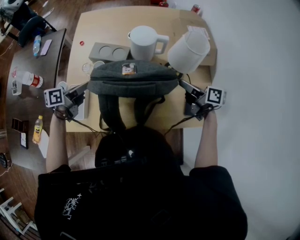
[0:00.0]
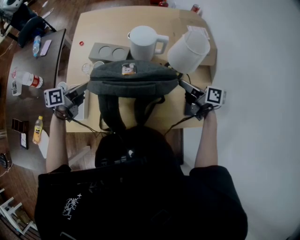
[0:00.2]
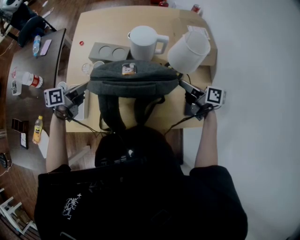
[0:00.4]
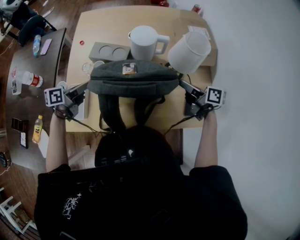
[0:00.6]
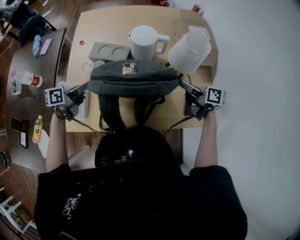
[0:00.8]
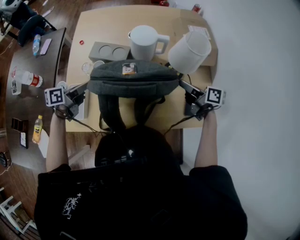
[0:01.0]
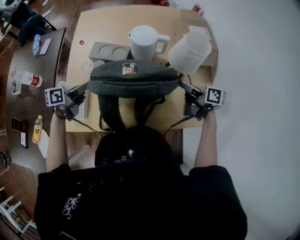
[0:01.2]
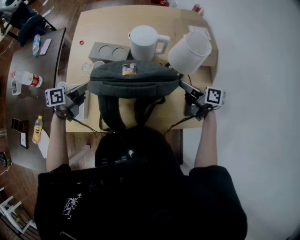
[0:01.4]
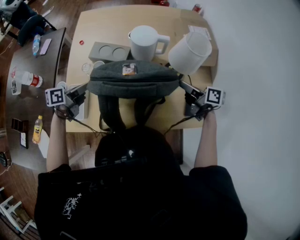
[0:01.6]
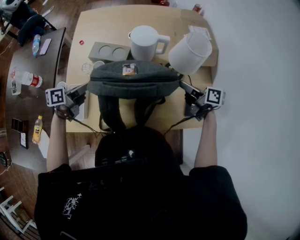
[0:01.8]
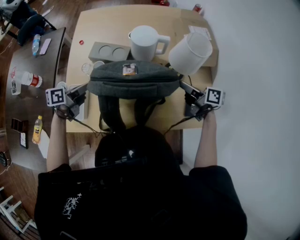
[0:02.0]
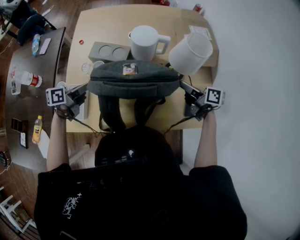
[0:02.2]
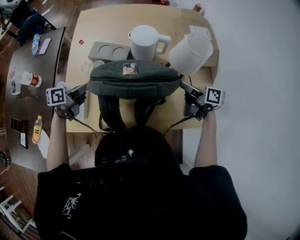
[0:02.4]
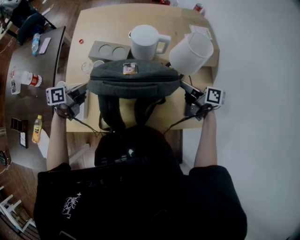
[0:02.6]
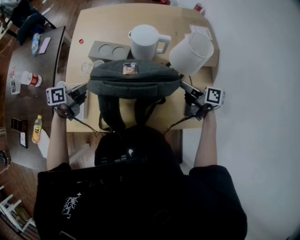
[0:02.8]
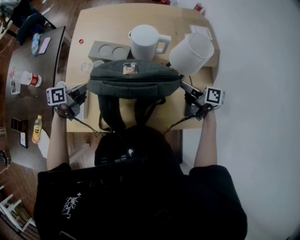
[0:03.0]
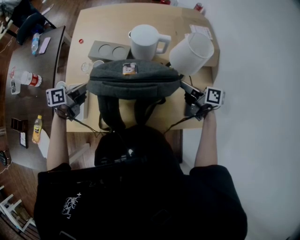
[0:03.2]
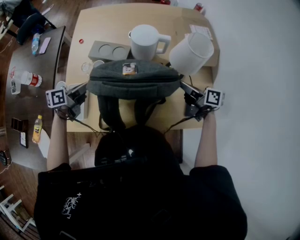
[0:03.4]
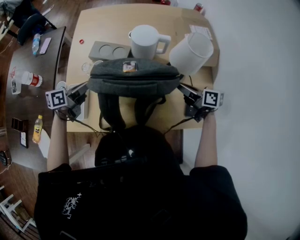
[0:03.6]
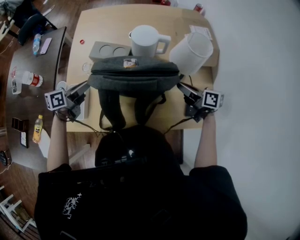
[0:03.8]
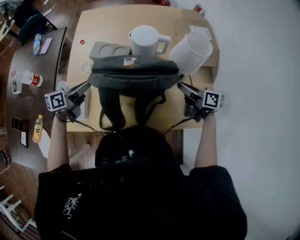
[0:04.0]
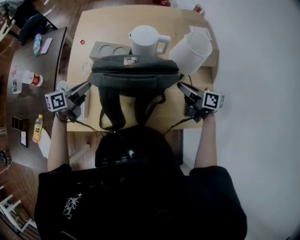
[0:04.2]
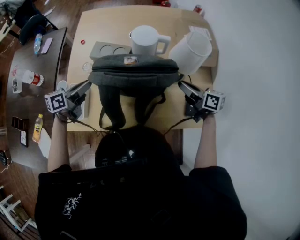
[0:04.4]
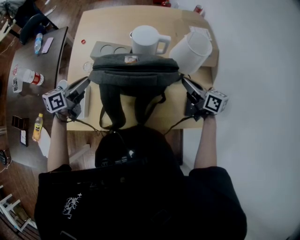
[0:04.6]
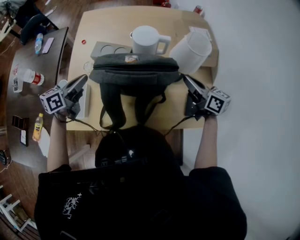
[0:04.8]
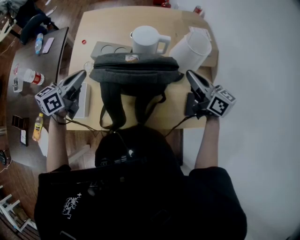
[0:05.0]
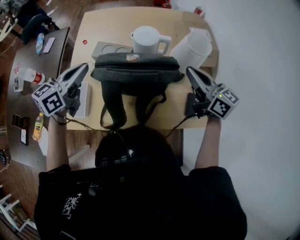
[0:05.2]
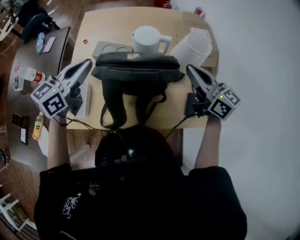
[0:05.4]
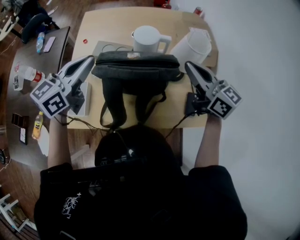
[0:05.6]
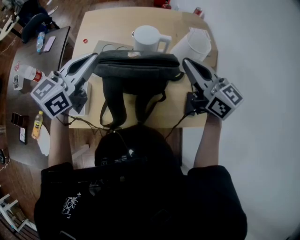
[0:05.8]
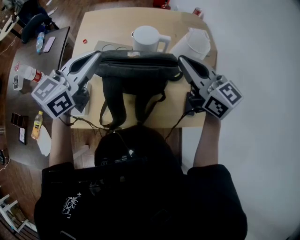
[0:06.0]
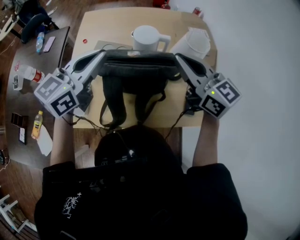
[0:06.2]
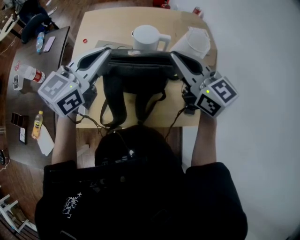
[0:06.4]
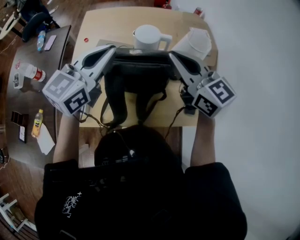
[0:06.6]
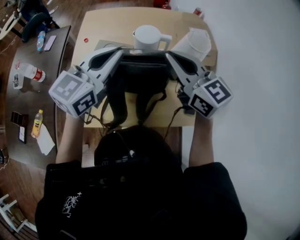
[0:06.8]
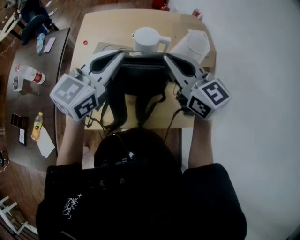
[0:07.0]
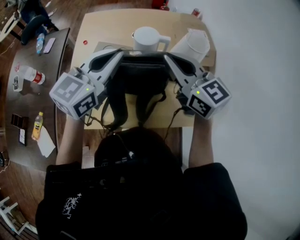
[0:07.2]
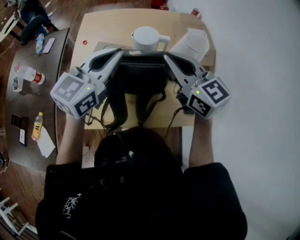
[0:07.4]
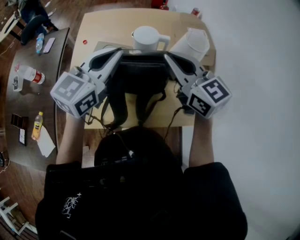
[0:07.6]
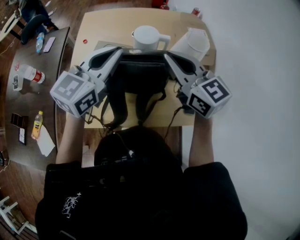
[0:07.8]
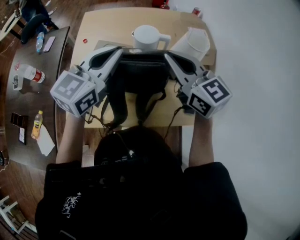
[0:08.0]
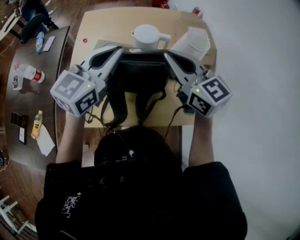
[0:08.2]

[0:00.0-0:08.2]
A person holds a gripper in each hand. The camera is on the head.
0:00.0 to 0:01.6: The grippers stay close to where they were, moving slightly.
0:01.6 to 0:03.2: Both grippers stay about where they are.
0:03.2 to 0:05.0: The two grippers go roughly 15 cm upward. The left gripper changes its angle by some 30 degrees, while the right gripper swivels roughly 30 degrees.
0:05.0 to 0:06.6: The right gripper is displaced upward and to the left by some 15 cm, and rotates roughly 30 degrees, while the left gripper heads upward and to the right, covering about 20 cm, and swivels approximately 30 degrees.
0:06.6 to 0:08.2: There are only small adjustments of the grippers.

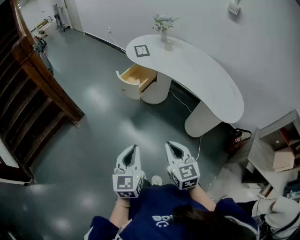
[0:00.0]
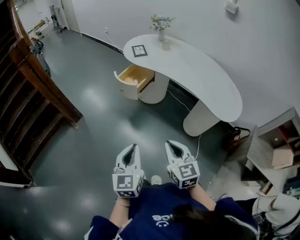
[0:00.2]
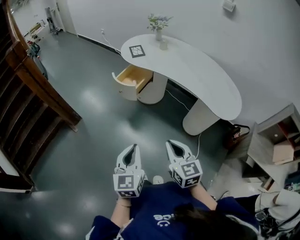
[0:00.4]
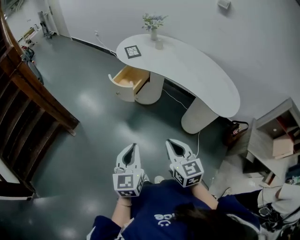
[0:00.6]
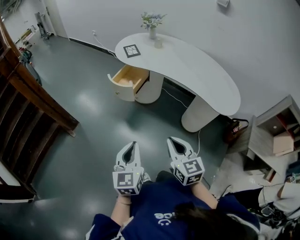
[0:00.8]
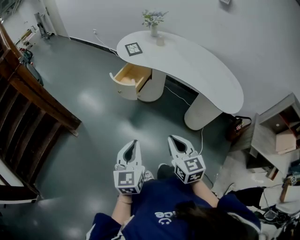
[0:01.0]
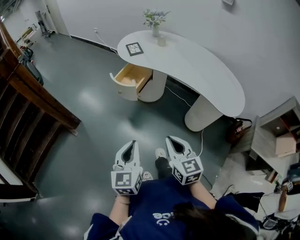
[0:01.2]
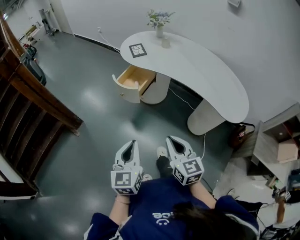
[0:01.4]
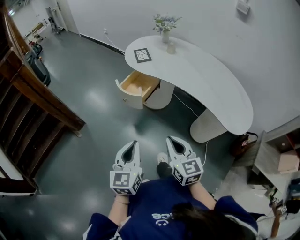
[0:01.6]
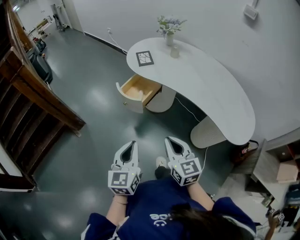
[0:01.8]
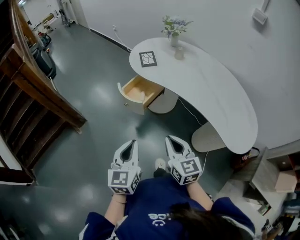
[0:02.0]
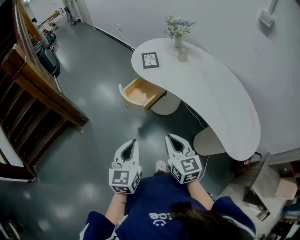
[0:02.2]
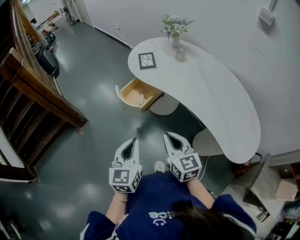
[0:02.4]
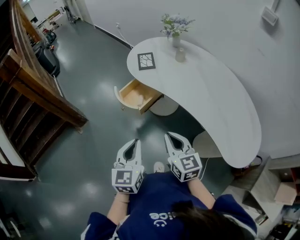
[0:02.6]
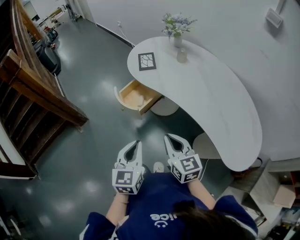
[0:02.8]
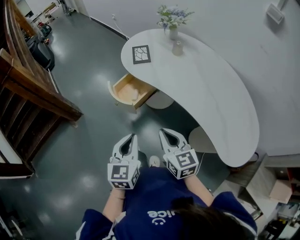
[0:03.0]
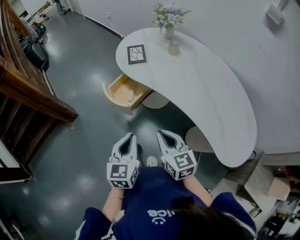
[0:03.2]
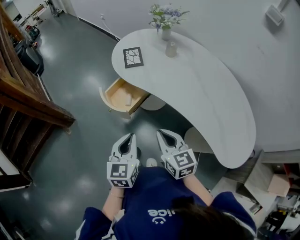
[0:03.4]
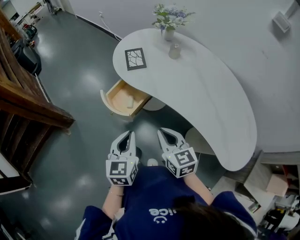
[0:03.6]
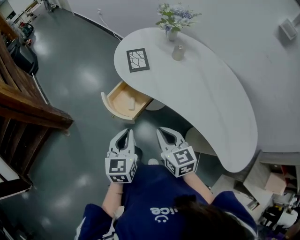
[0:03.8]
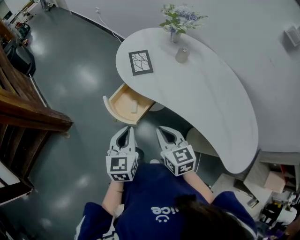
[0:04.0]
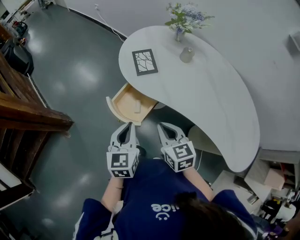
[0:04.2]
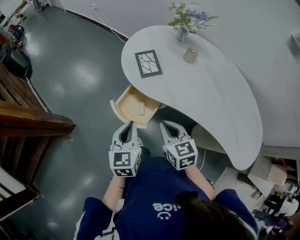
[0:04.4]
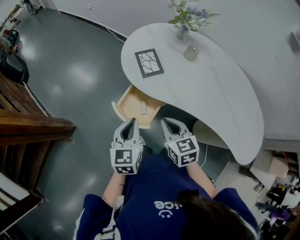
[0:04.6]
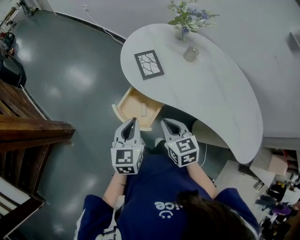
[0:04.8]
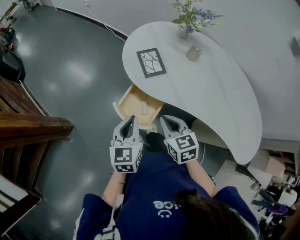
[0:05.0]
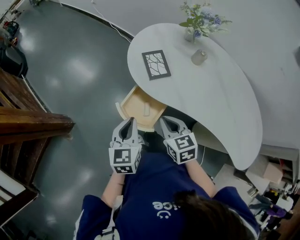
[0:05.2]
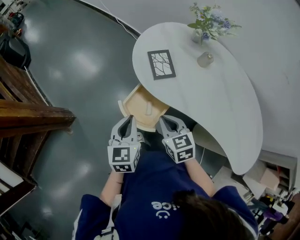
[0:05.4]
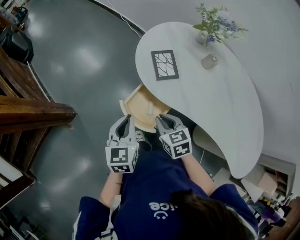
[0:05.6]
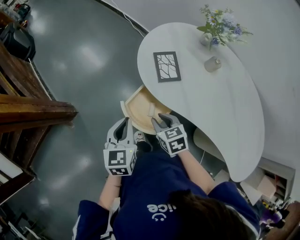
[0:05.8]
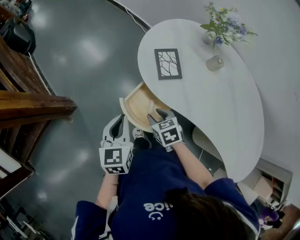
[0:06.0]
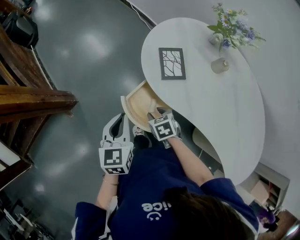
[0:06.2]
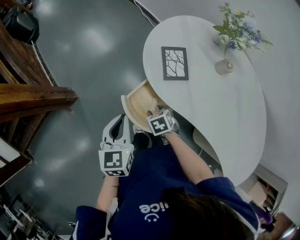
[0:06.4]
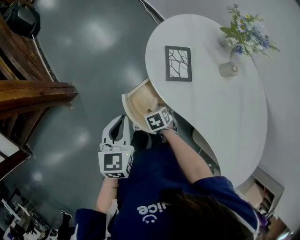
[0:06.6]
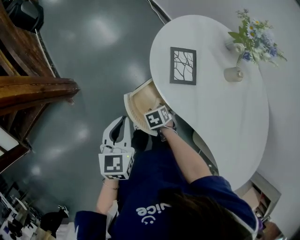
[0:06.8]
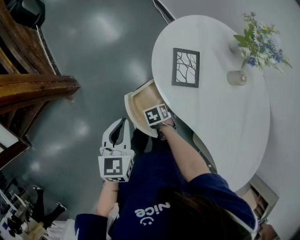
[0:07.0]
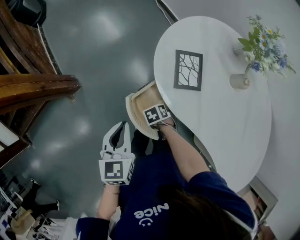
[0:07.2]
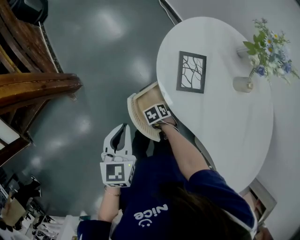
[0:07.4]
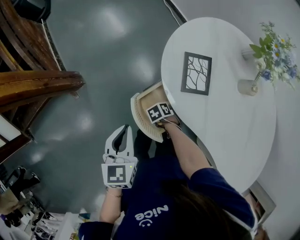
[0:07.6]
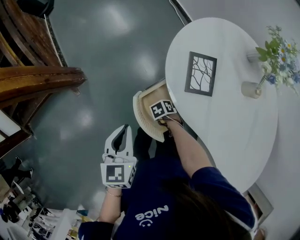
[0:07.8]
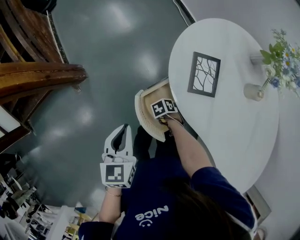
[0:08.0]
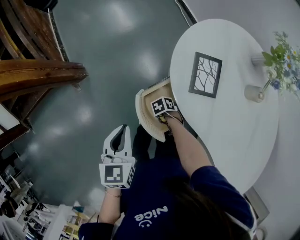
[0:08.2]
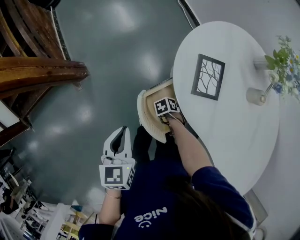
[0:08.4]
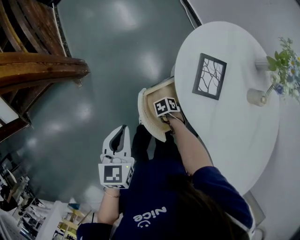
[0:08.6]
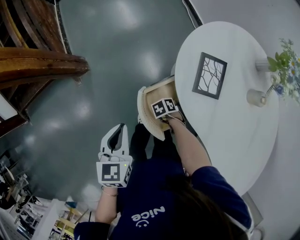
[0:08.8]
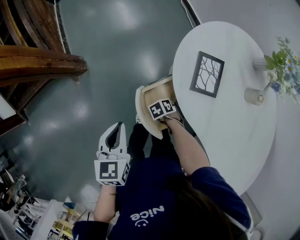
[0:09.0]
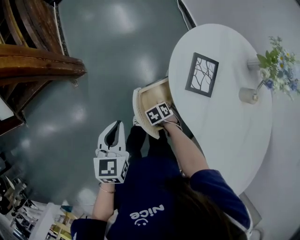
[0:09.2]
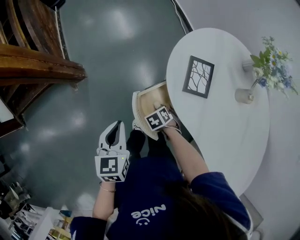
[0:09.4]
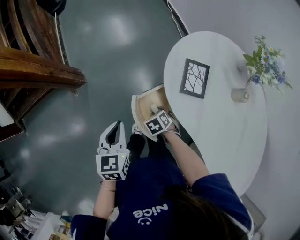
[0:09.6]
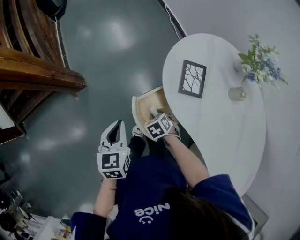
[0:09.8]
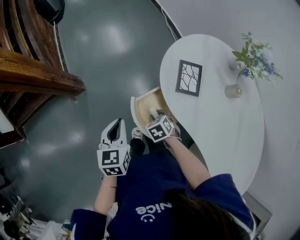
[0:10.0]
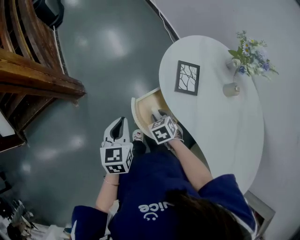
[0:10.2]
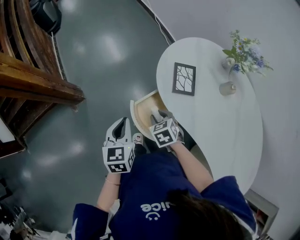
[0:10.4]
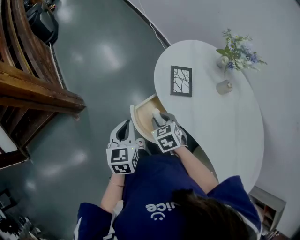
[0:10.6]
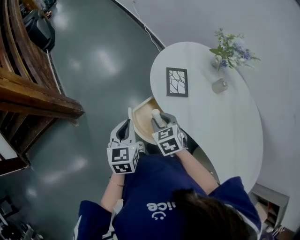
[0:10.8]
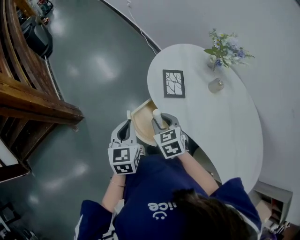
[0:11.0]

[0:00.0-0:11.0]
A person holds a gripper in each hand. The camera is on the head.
0:00.0 to 0:01.6: Both grippers travel together forward, some 15 cm.
0:01.6 to 0:03.2: The two grippers go about 20 cm forward and to the right.
0:03.2 to 0:04.8: Both grippers travel together forward and to the left, some 25 cm.
0:04.8 to 0:06.2: The left gripper goes about 10 cm to the left and forward, while the right gripper goes some 15 cm downward and forward, turns by some 30 degrees, and opens its fingers.
0:06.2 to 0:07.8: The right gripper moves downward, approximately 20 cm, and swivels some 40 degrees.
0:07.8 to 0:09.4: The right gripper shifts roughly 5 cm upward, swivels some 20 degrees, and closes up.
0:09.4 to 0:11.0: The right gripper shifts approximately 25 cm upward, and tilts its fingers about 40 degrees upward, while the left gripper shifts by about 10 cm.

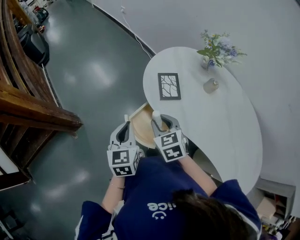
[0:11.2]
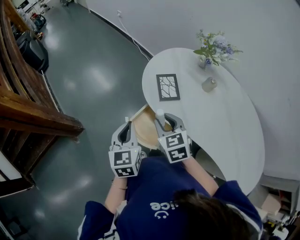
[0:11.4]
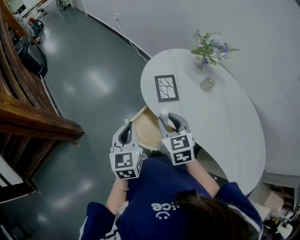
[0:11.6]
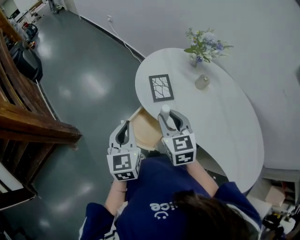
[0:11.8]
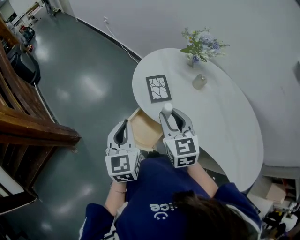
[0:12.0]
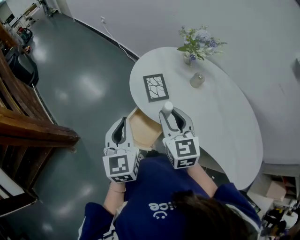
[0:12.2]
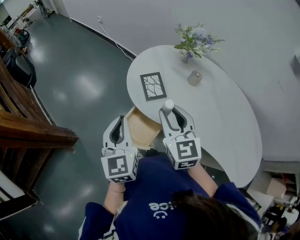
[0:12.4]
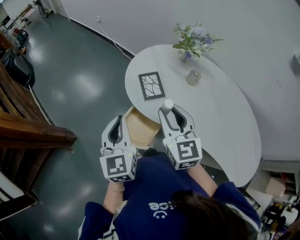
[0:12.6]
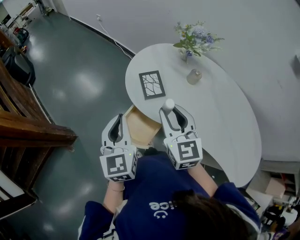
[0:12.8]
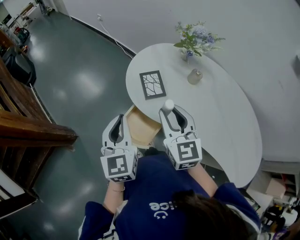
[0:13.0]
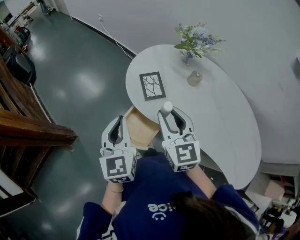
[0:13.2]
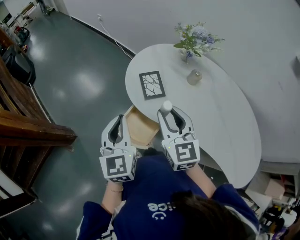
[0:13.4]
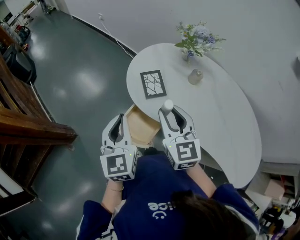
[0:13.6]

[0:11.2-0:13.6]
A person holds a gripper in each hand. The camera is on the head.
0:11.2 to 0:12.4: The left gripper heads upward, covering roughly 10 cm; the right gripper moves upward and to the right, approximately 15 cm, and rotates roughly 30 degrees.
0:12.4 to 0:13.6: Neither gripper changes place.

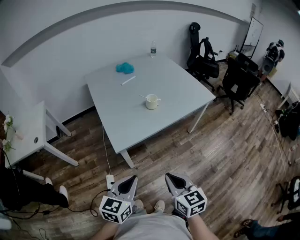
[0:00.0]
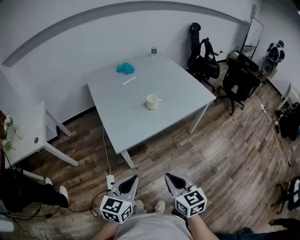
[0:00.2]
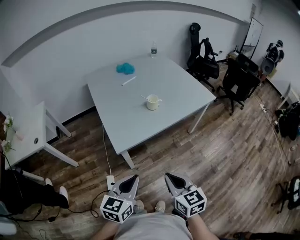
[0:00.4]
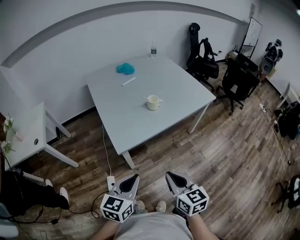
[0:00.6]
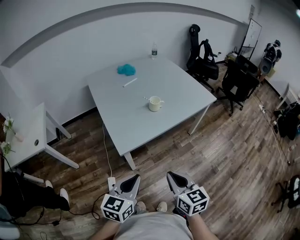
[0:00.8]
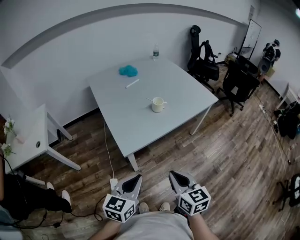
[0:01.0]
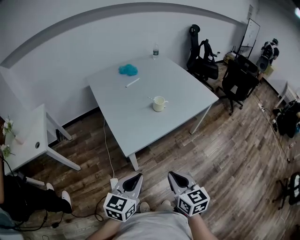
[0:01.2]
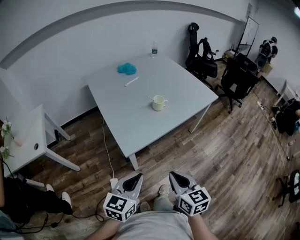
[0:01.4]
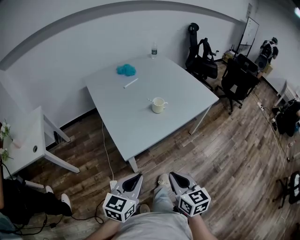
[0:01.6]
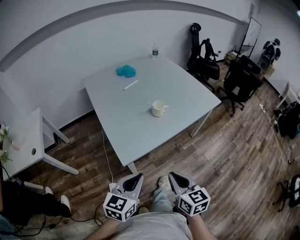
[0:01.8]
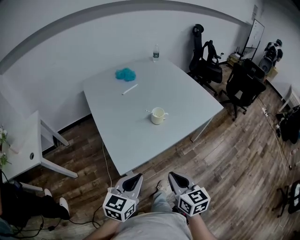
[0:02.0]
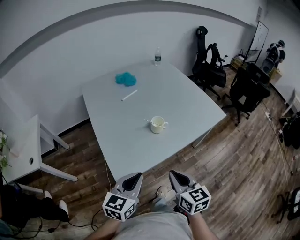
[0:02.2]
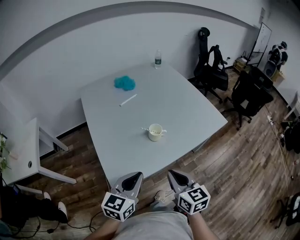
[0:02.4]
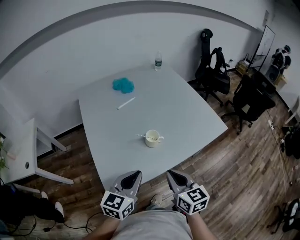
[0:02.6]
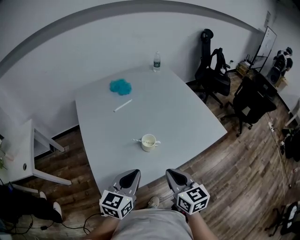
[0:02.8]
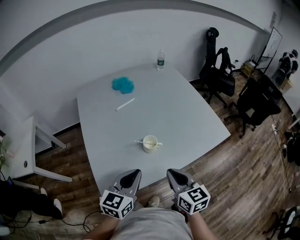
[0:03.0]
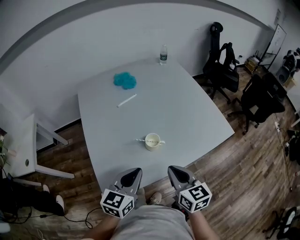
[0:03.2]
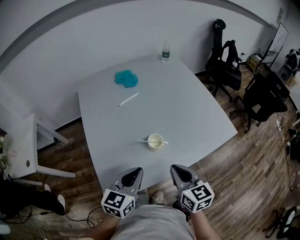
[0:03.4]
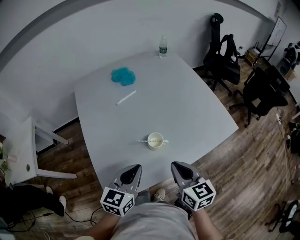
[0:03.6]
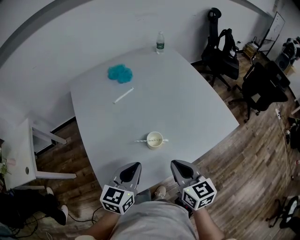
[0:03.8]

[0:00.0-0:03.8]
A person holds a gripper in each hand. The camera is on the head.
0:00.0 to 0:01.2: Both grippers travel together to the left, approximately 5 cm.
0:01.2 to 0:02.6: Both grippers move forward, approximately 30 cm.
0:02.6 to 0:03.8: The two grippers go approximately 10 cm forward.
